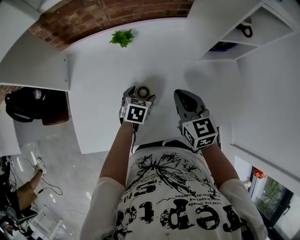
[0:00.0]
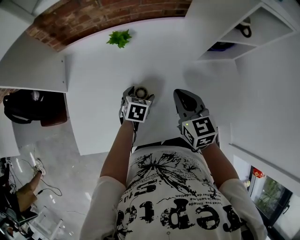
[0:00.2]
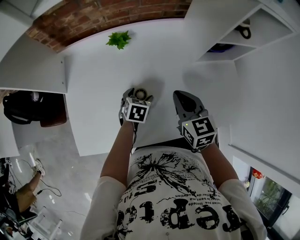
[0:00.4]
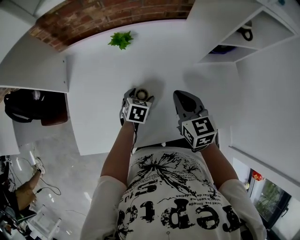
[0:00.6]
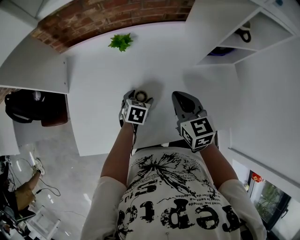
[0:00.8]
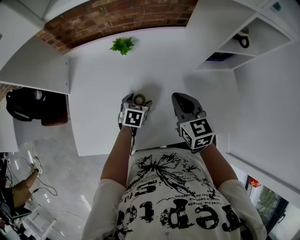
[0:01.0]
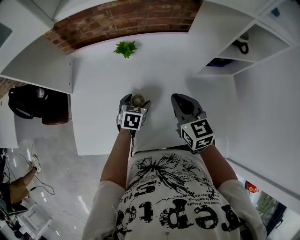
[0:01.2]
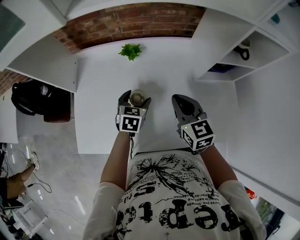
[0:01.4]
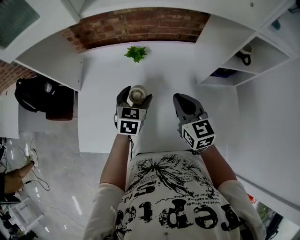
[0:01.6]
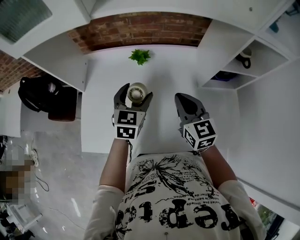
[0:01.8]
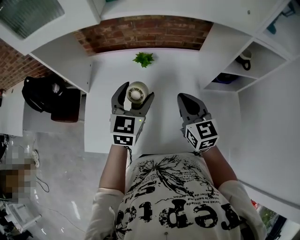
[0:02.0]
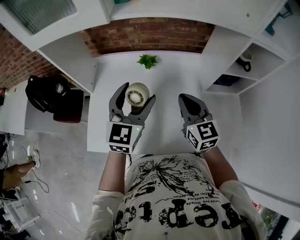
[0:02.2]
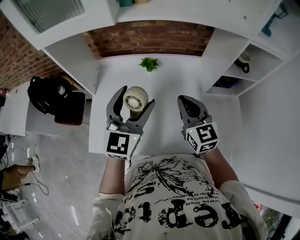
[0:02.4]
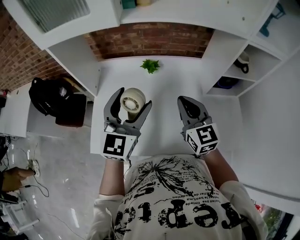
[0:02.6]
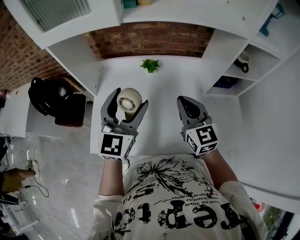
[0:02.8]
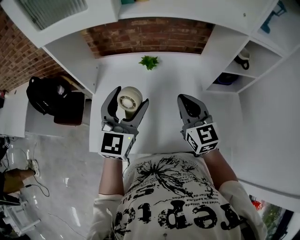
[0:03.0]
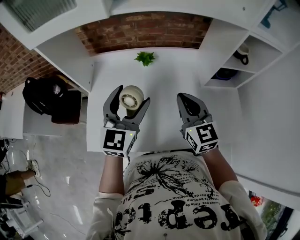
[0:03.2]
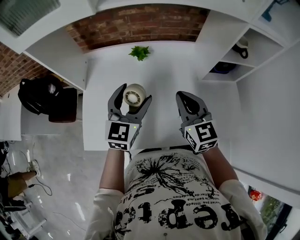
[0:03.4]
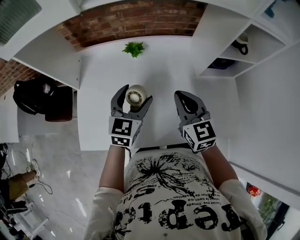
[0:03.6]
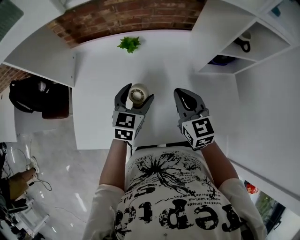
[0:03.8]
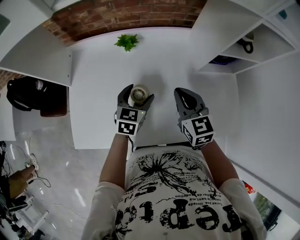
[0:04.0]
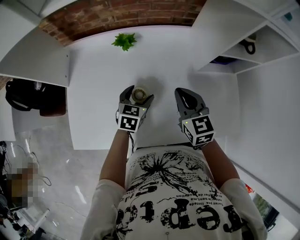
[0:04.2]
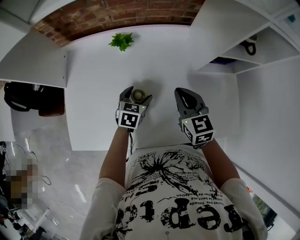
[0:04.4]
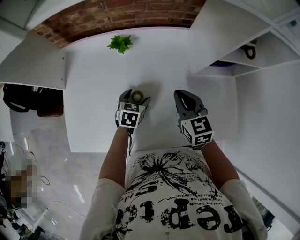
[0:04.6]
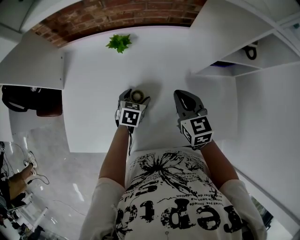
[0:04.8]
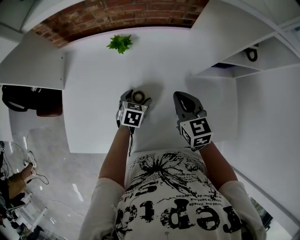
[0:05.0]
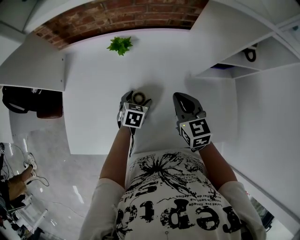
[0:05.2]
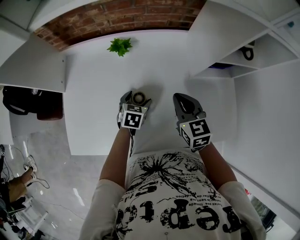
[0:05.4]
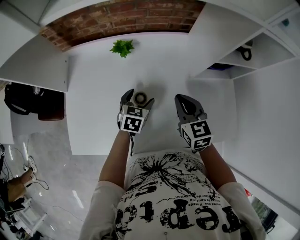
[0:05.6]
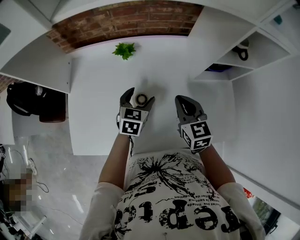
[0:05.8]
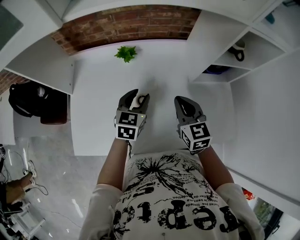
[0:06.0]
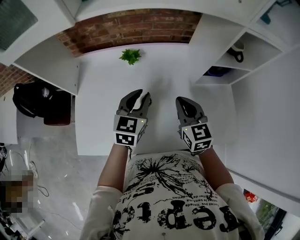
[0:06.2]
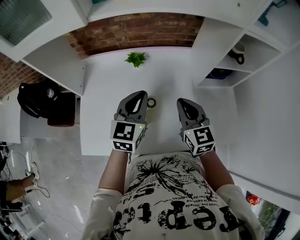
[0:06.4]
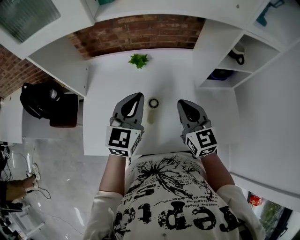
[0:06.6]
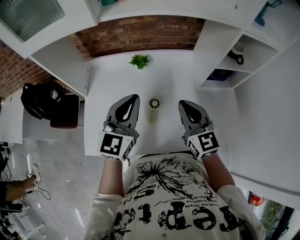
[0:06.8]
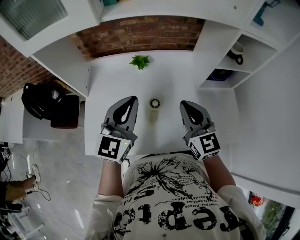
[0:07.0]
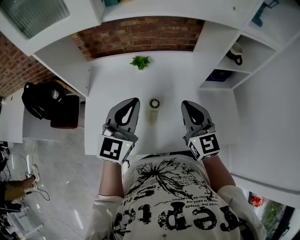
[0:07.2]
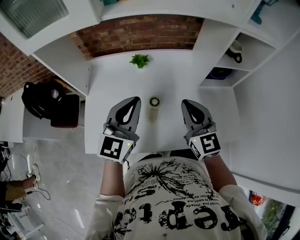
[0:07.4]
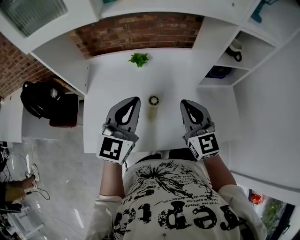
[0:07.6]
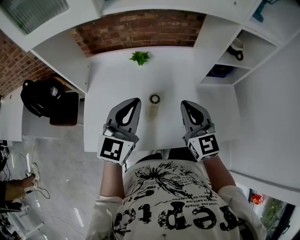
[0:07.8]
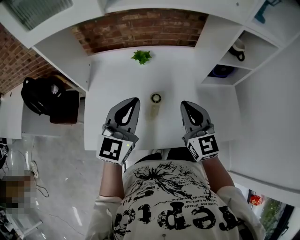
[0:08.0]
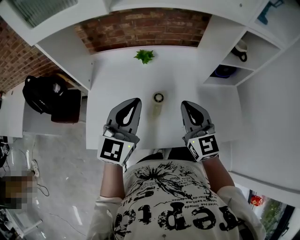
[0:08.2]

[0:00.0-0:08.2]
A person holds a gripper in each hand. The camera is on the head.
0:00.0 to 0:01.6: The left gripper goes approximately 15 cm upward, and swivels approximately 20 degrees; the right gripper goes approximately 5 cm upward.
0:01.6 to 0:03.2: The left gripper moves upward and backward, some 20 cm, and swivels about 30 degrees, while the right gripper heads upward, covering about 5 cm.
0:03.2 to 0:05.0: The left gripper goes roughly 35 cm downward, and points its fingers some 50 degrees further downward. The right gripper heads downward, to the right and forward, covering some 20 cm, and changes its angle by about 20 degrees.
0:05.0 to 0:06.6: The left gripper goes roughly 30 cm upward, points its fingers roughly 40 degrees further upward, and closes up. Meanwhile the right gripper heads upward, backward and to the left, covering approximately 15 cm.
0:06.6 to 0:08.2: The left gripper shifts some 5 cm backward; the right gripper shifts by approximately 5 cm.

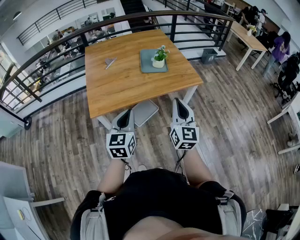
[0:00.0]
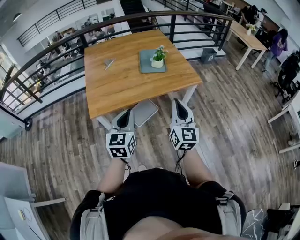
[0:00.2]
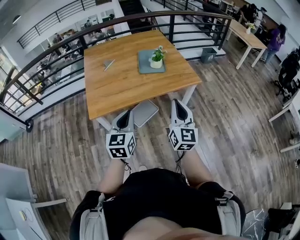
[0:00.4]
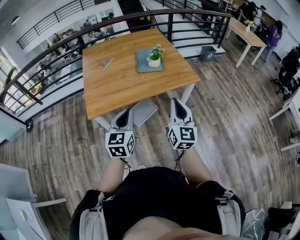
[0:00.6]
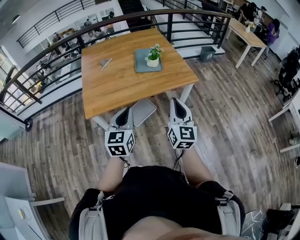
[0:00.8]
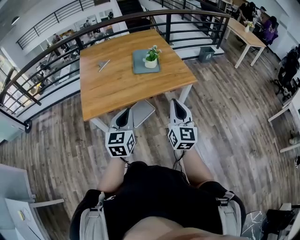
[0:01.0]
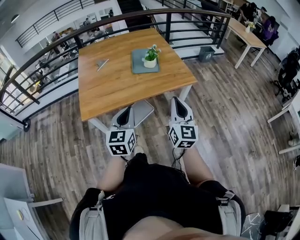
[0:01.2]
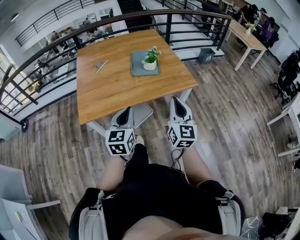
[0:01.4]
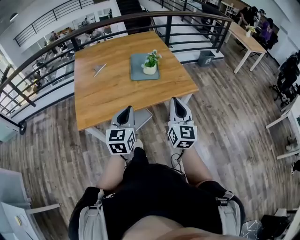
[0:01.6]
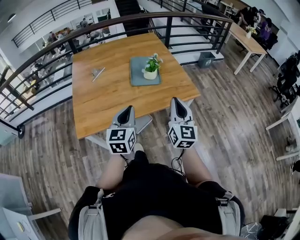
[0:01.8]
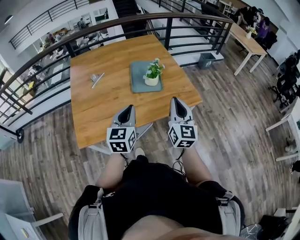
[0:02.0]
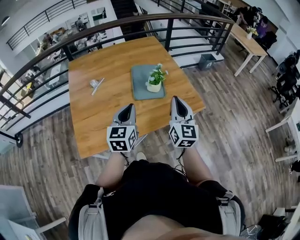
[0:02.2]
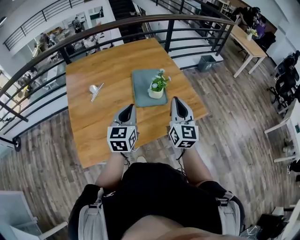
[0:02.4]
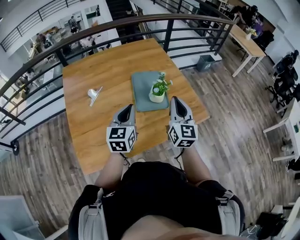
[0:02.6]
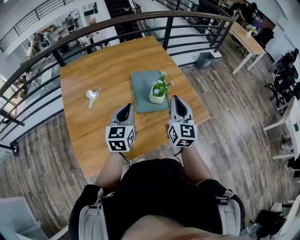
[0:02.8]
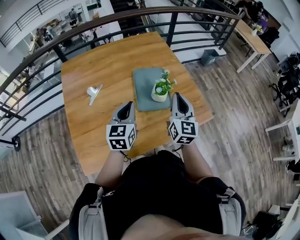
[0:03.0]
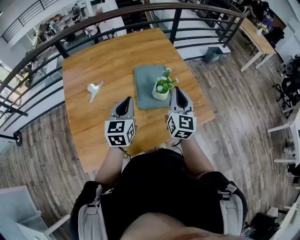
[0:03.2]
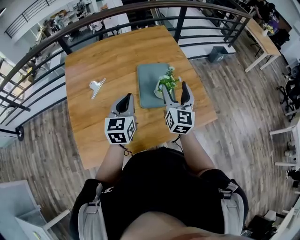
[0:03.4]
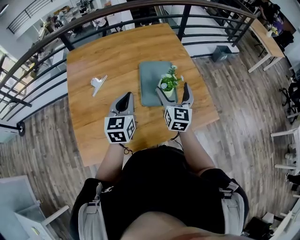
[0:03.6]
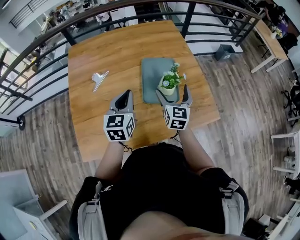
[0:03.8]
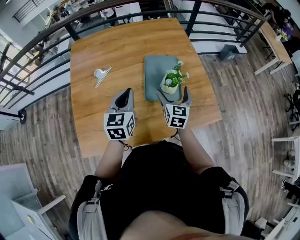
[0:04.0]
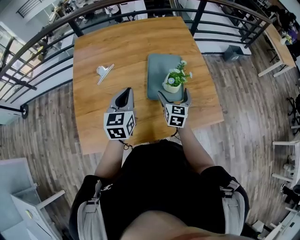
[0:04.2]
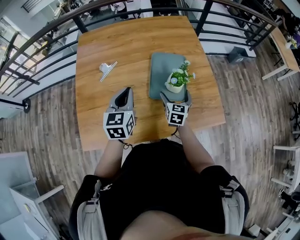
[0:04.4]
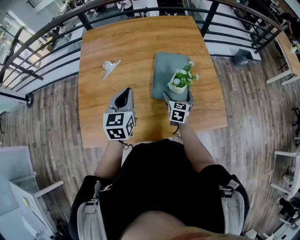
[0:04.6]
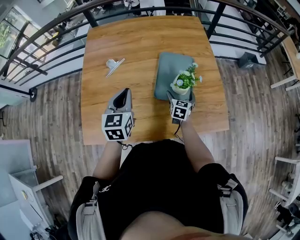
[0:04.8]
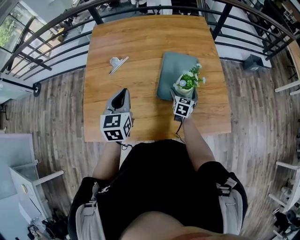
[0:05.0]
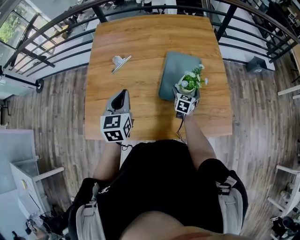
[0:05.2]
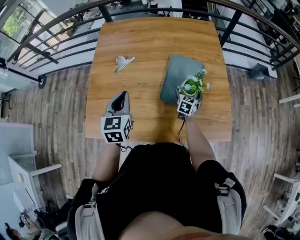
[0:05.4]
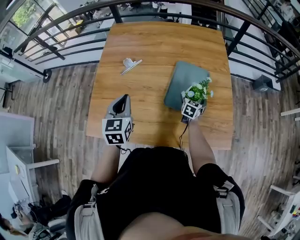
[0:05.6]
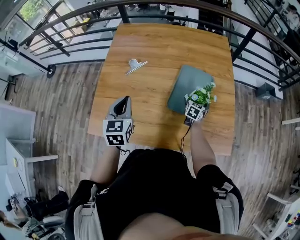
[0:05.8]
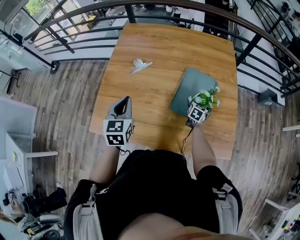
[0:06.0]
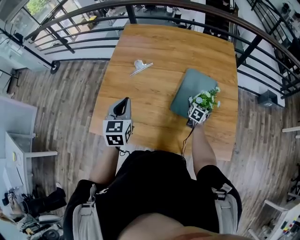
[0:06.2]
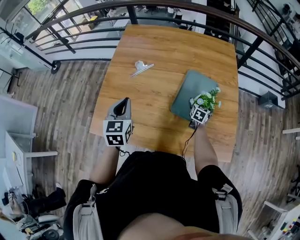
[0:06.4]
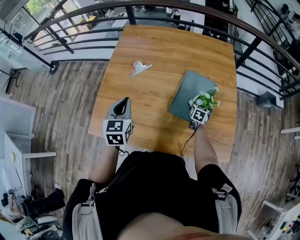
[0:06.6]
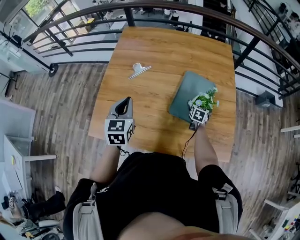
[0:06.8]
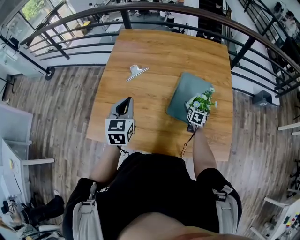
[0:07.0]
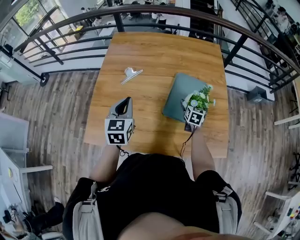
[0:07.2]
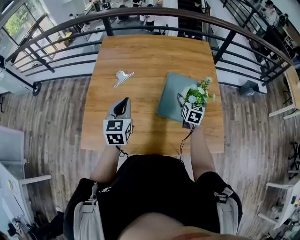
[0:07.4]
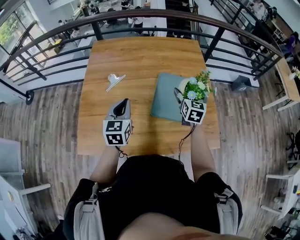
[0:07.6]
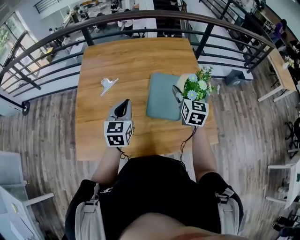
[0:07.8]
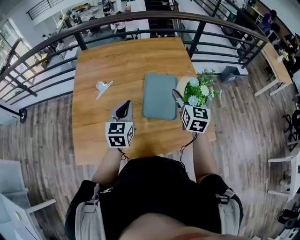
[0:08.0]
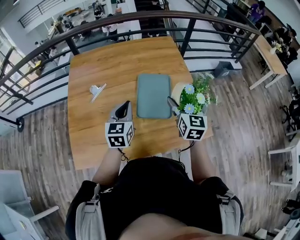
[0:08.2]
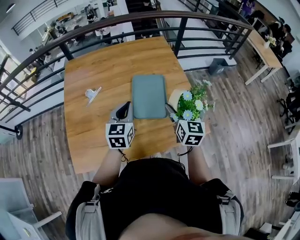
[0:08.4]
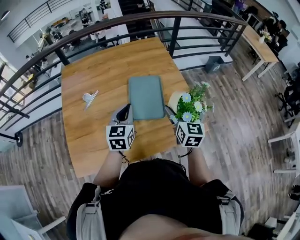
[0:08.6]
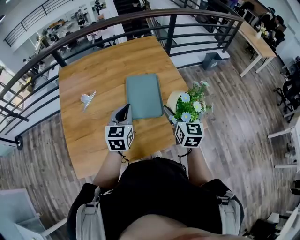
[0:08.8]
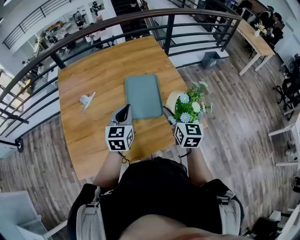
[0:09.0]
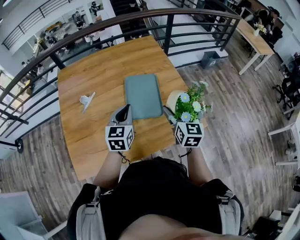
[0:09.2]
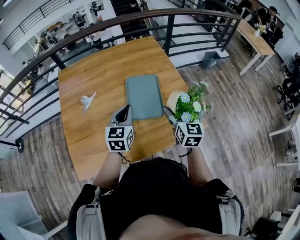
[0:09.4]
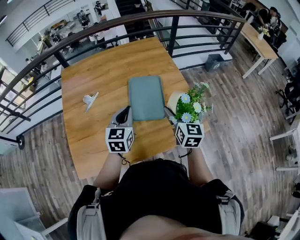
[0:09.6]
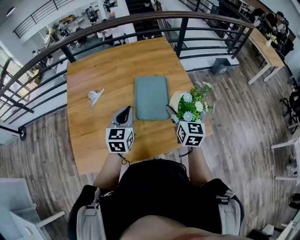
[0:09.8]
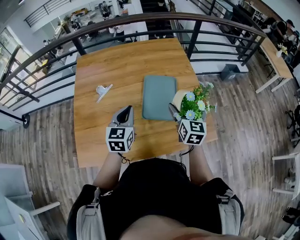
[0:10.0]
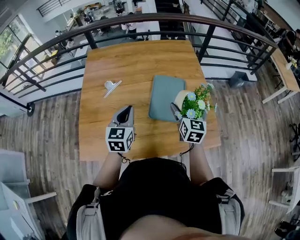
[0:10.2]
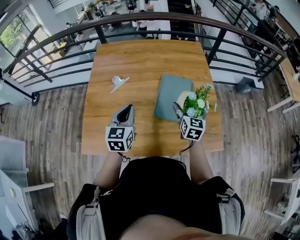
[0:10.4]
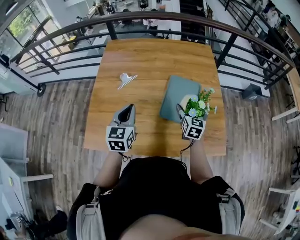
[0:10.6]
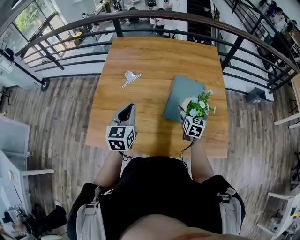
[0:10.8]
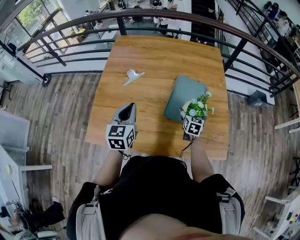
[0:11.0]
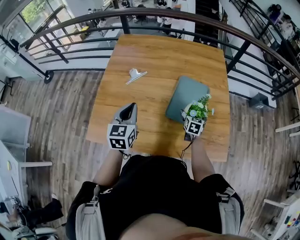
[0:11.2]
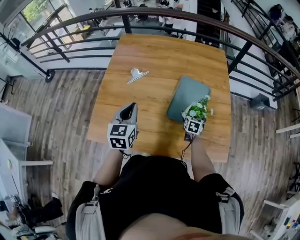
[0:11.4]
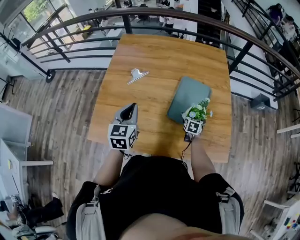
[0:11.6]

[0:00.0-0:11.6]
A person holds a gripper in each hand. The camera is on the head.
0:00.0 to 0:01.4: Both grippers travel together forward and to the right, about 10 cm.
0:01.4 to 0:02.8: Both grippers are carried forward, approximately 40 cm.
0:02.8 to 0:04.4: The right gripper shifts roughly 25 cm downward and forward, rotates about 30 degrees, and opens its fingers.
0:04.4 to 0:05.8: The right gripper goes some 15 cm forward and downward; the left gripper shifts approximately 5 cm to the left, and rotates some 20 degrees.
0:05.8 to 0:07.2: The right gripper heads upward, covering about 5 cm.
0:07.2 to 0:08.8: The right gripper goes approximately 30 cm upward, backward and to the right, and swivels about 20 degrees; the left gripper shifts some 20 cm to the right, and rotates some 30 degrees.
0:08.8 to 0:10.2: The left gripper moves to the left, roughly 10 cm. The right gripper goes approximately 10 cm to the left and forward.
0:10.2 to 0:11.6: The right gripper heads downward, covering approximately 25 cm, and changes its angle by approximately 30 degrees. Meanwhile the left gripper shifts roughly 10 cm to the left.

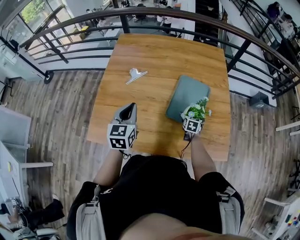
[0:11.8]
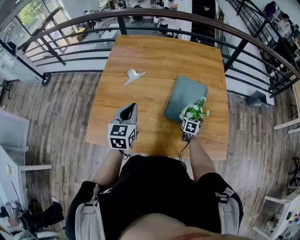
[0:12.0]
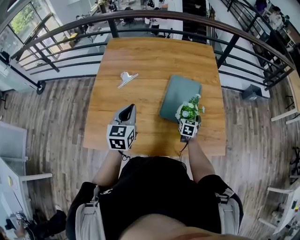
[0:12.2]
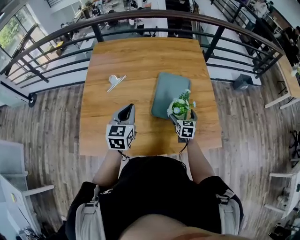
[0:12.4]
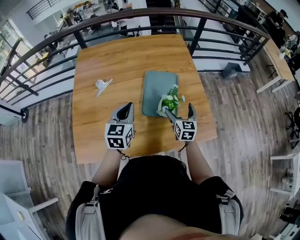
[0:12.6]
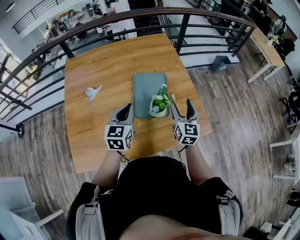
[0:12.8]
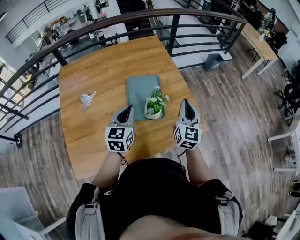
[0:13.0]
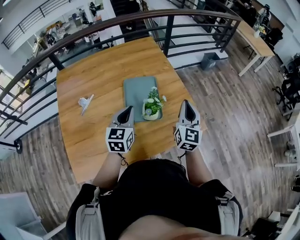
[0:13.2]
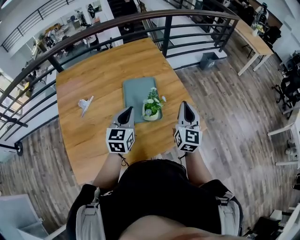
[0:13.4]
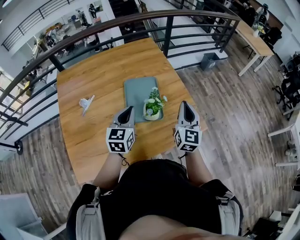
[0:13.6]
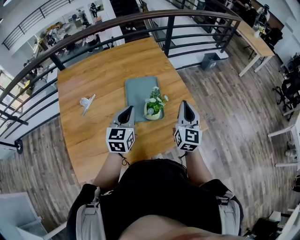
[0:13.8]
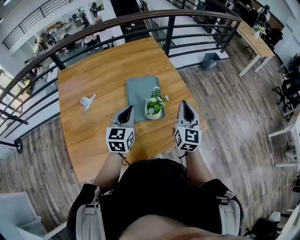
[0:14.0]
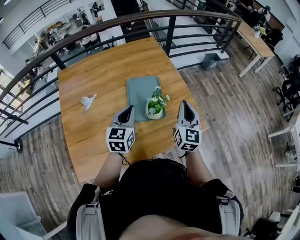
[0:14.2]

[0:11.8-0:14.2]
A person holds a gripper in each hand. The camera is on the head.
0:11.8 to 0:13.0: The left gripper changes place by approximately 20 cm, and changes its angle by roughly 30 degrees; the right gripper goes about 30 cm upward, tips its fingers upward by some 40 degrees, and closes.
0:13.0 to 0:14.2: The grippers make only small movements.

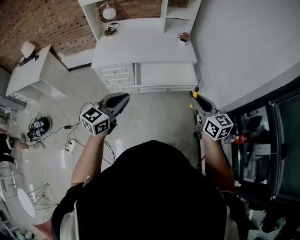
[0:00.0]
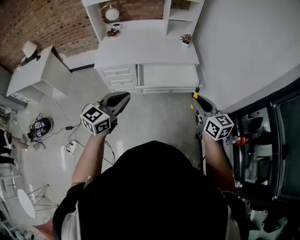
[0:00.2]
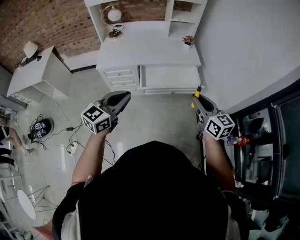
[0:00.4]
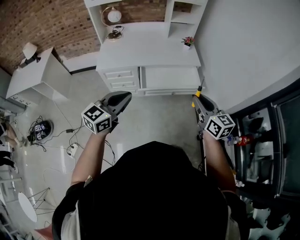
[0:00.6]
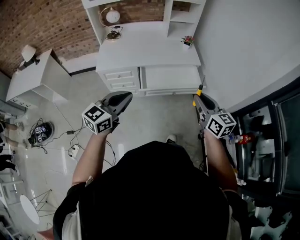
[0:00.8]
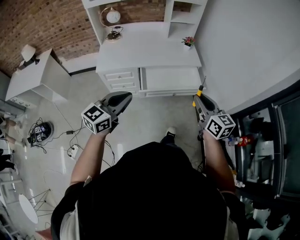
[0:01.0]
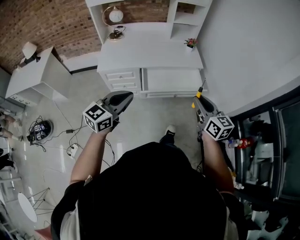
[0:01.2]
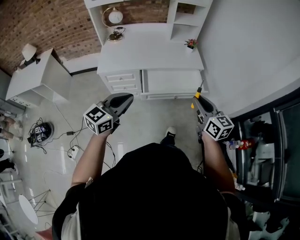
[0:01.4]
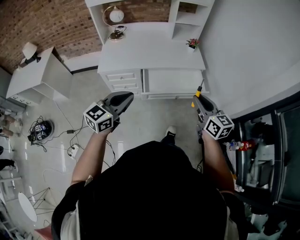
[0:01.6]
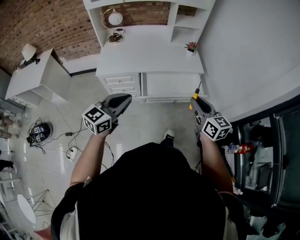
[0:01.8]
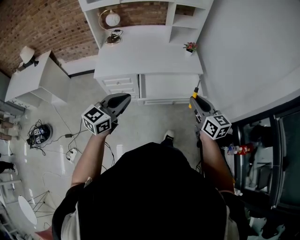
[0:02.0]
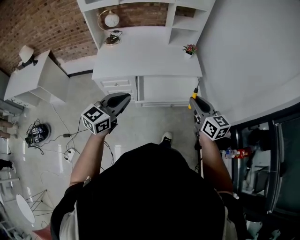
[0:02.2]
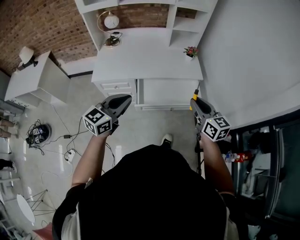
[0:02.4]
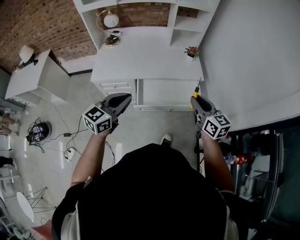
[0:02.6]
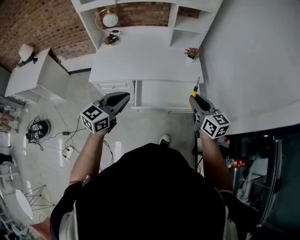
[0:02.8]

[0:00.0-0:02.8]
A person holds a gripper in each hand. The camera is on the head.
0:00.0 to 0:01.4: Both grippers move to the left, about 5 cm.
0:01.4 to 0:02.8: The grippers both shift forward by about 20 cm.
